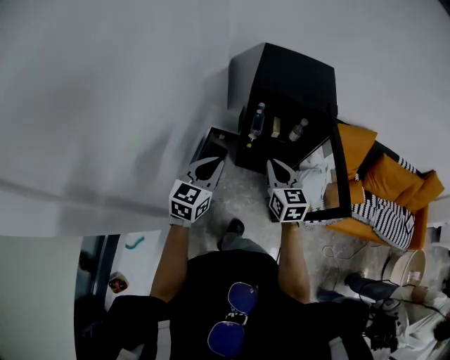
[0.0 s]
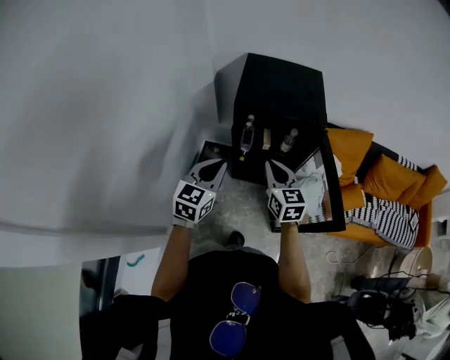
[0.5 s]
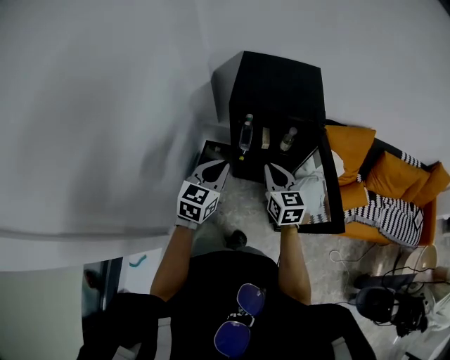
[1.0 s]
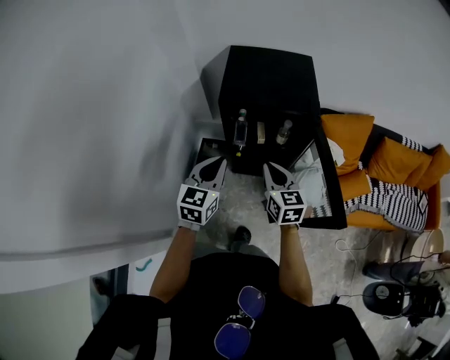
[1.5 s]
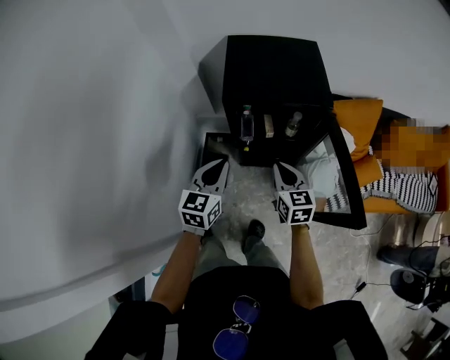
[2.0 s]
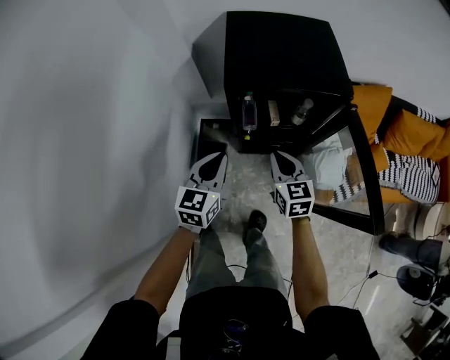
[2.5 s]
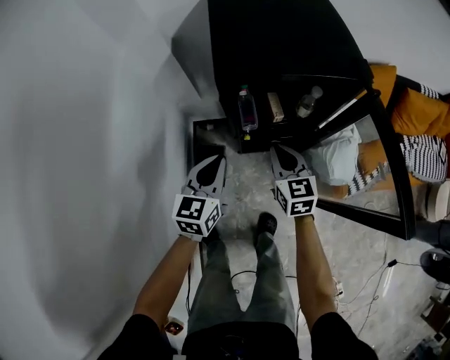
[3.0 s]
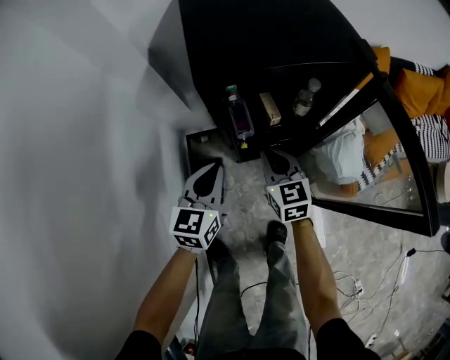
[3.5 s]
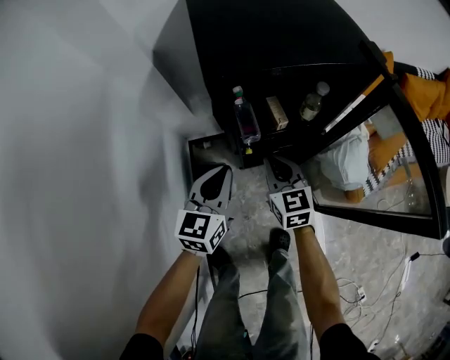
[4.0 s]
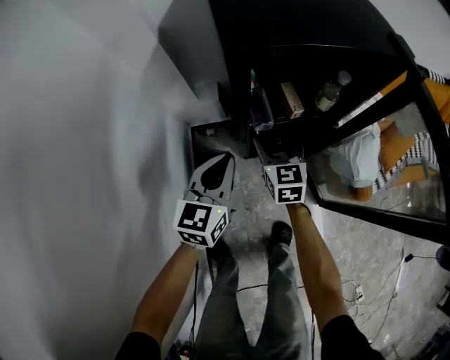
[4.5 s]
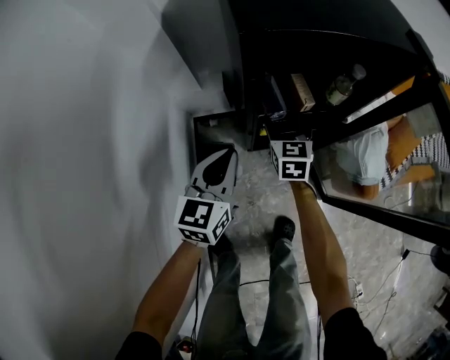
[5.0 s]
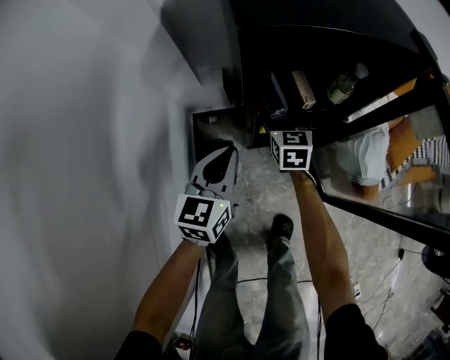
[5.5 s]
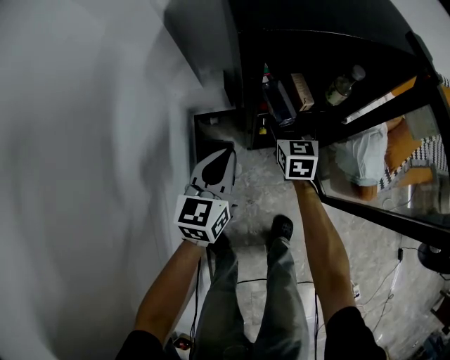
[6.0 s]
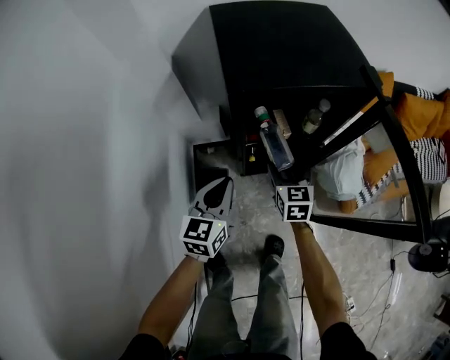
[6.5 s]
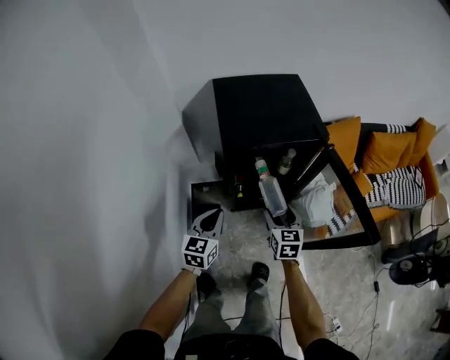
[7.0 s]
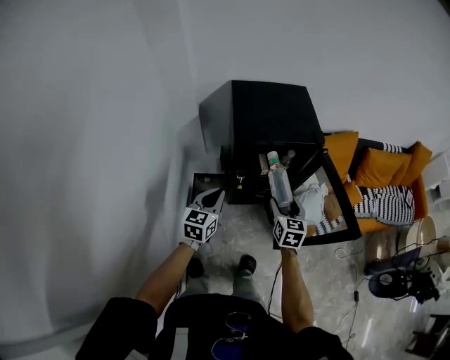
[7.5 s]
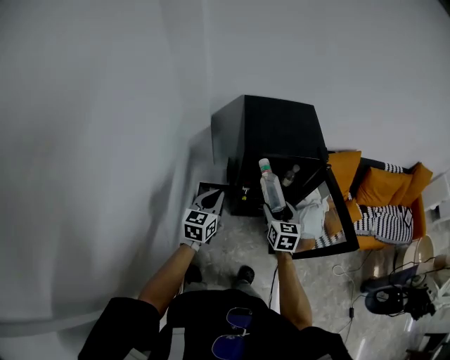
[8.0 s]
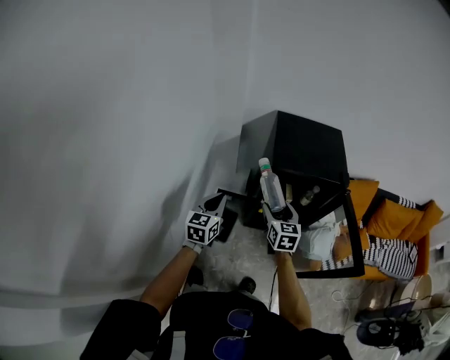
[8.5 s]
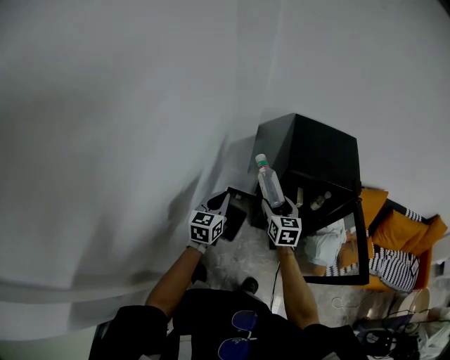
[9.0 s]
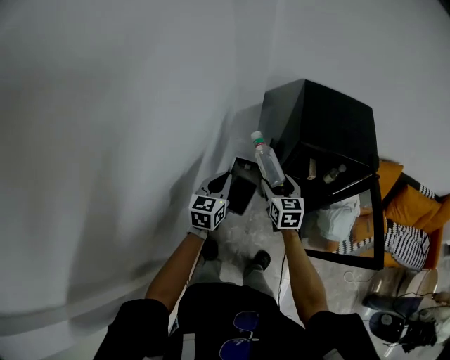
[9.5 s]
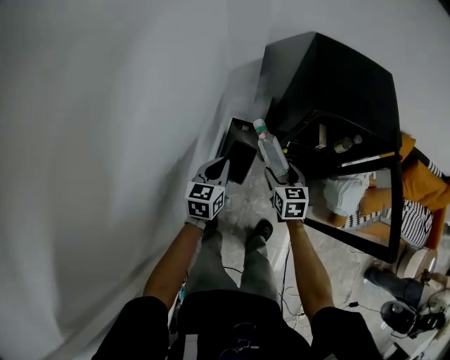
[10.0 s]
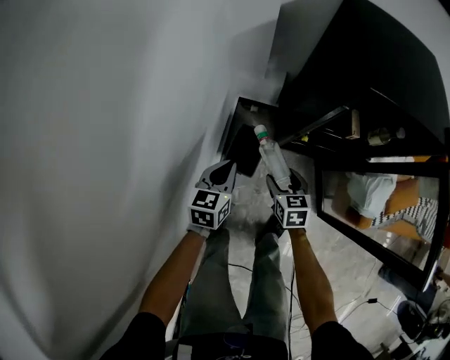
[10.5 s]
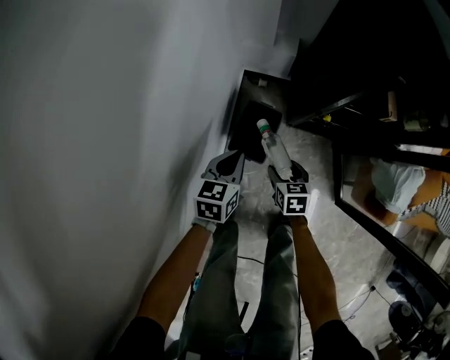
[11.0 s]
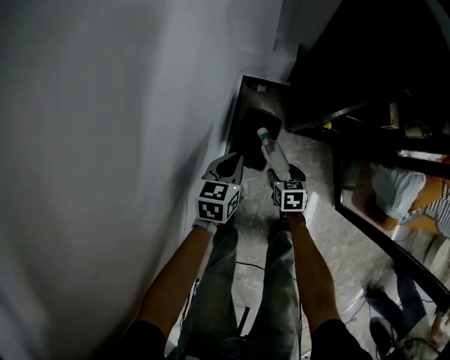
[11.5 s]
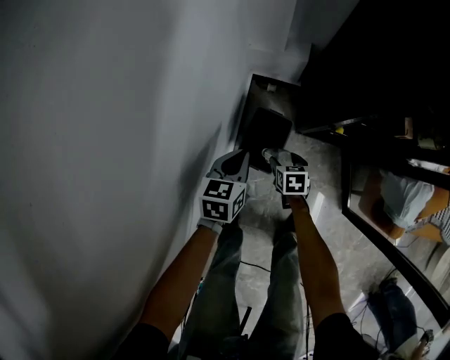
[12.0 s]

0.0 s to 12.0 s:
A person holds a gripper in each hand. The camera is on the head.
0.0 to 2.0 s: The right gripper travels forward, downward and to the right by approximately 15 cm; the left gripper goes approximately 15 cm forward.
2.0 to 4.0 s: The left gripper goes approximately 25 cm downward and forward. The right gripper shifts about 25 cm downward, forward and to the left.
4.0 to 6.0 s: The right gripper goes about 15 cm downward and forward, and opens. Meanwhile the left gripper shifts approximately 5 cm downward.
6.0 to 8.0 s: The left gripper travels upward by approximately 25 cm. Meanwhile the right gripper moves upward and backward, roughly 40 cm.
8.0 to 10.0 s: The right gripper heads to the left and downward, covering about 20 cm, and turns by approximately 20 degrees. Meanwhile the left gripper travels downward and to the left by roughly 20 cm.
10.0 to 12.0 s: The two grippers go approximately 40 cm downward. The right gripper changes its angle by about 30 degrees.

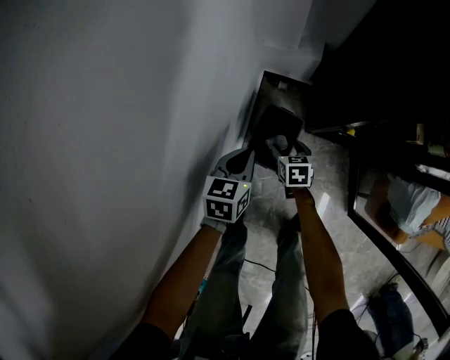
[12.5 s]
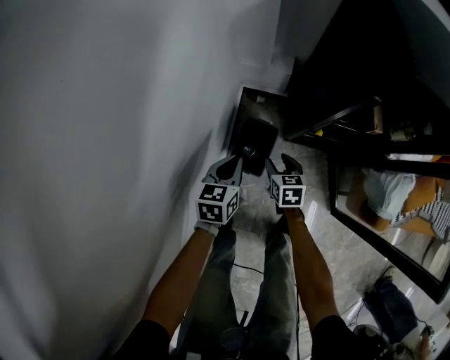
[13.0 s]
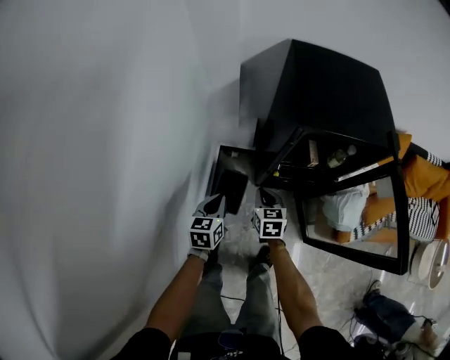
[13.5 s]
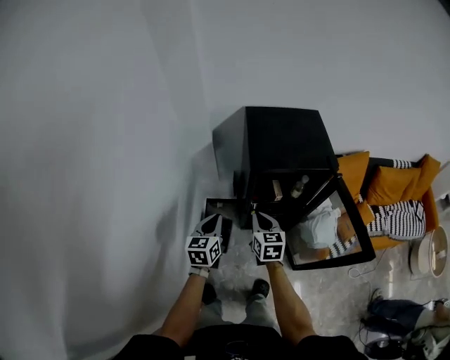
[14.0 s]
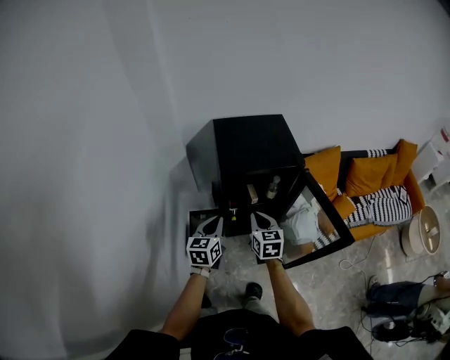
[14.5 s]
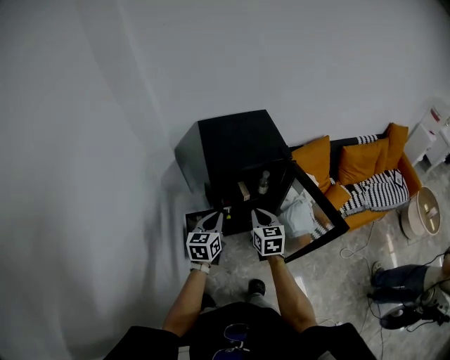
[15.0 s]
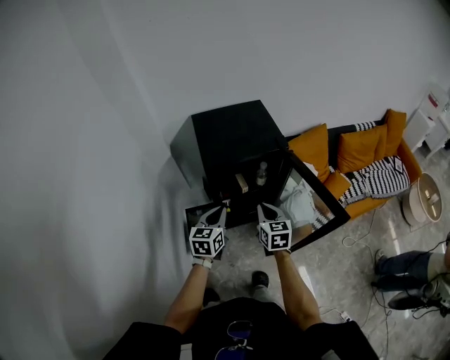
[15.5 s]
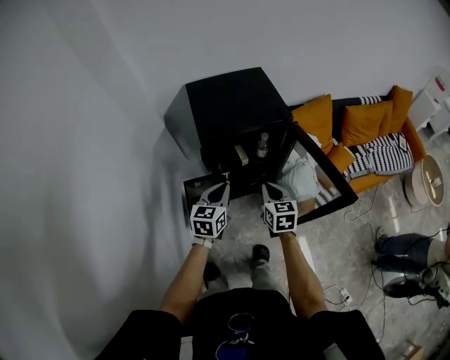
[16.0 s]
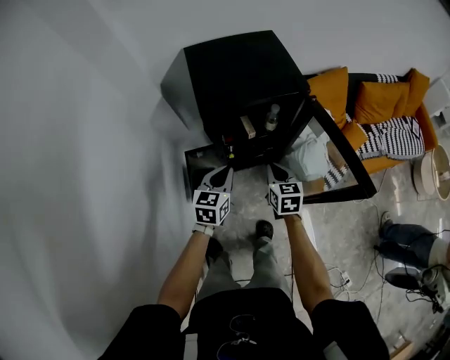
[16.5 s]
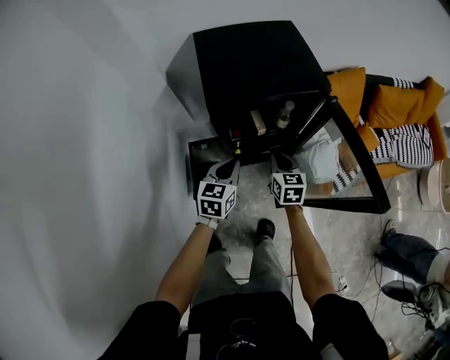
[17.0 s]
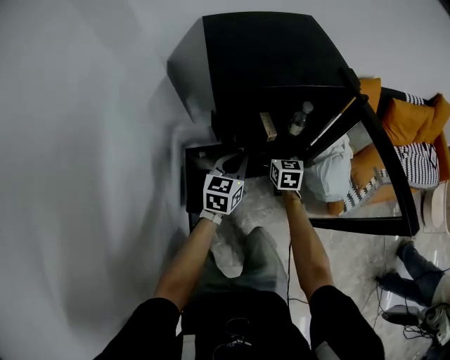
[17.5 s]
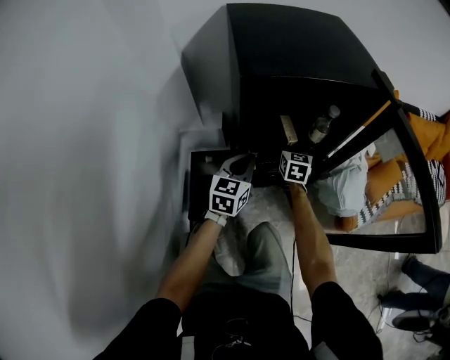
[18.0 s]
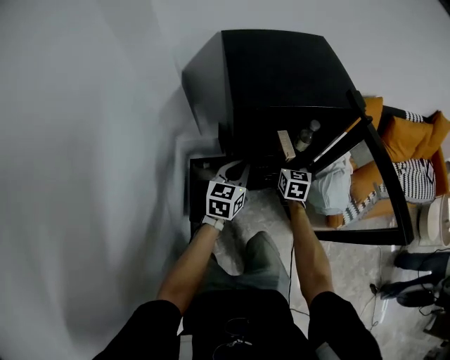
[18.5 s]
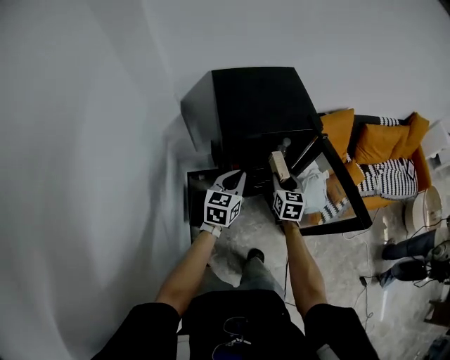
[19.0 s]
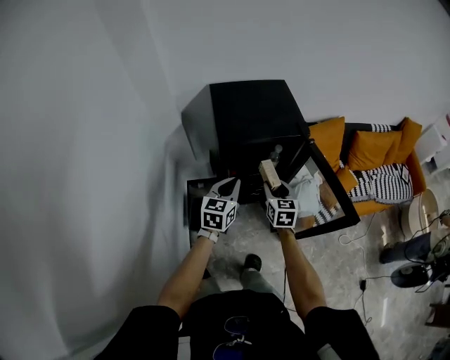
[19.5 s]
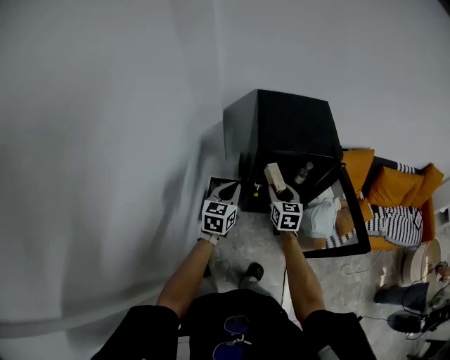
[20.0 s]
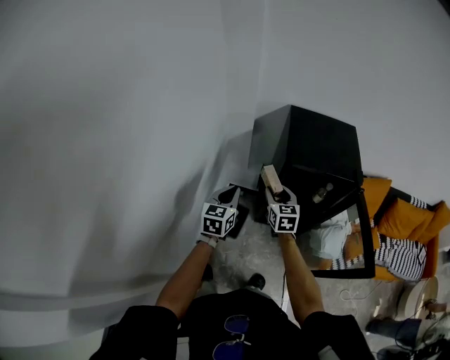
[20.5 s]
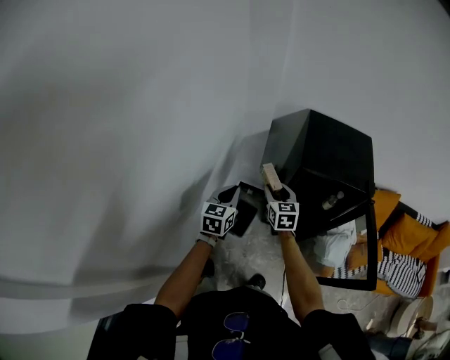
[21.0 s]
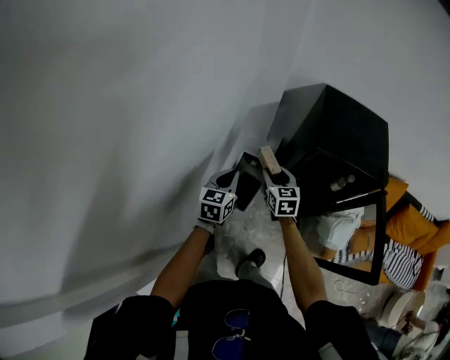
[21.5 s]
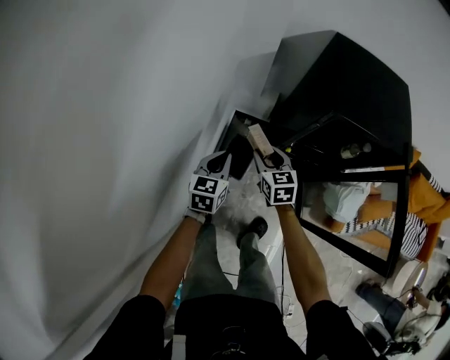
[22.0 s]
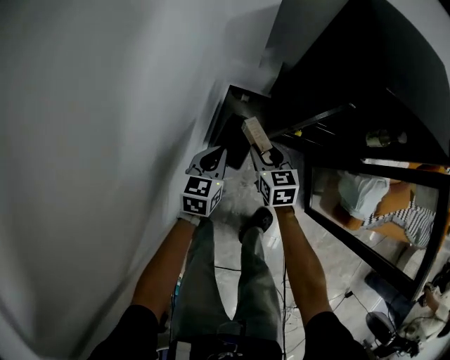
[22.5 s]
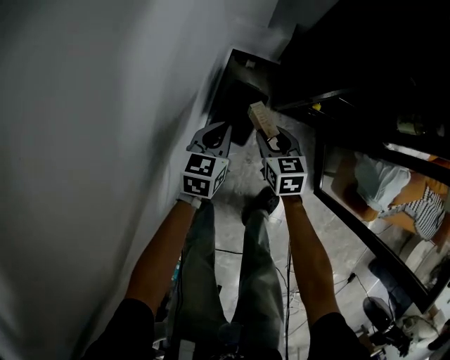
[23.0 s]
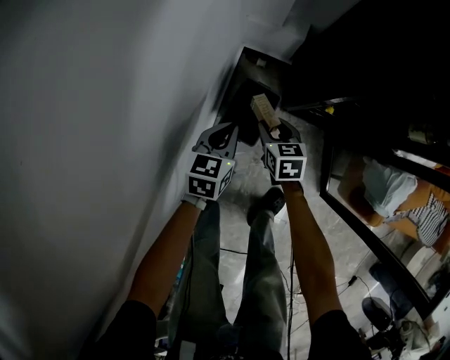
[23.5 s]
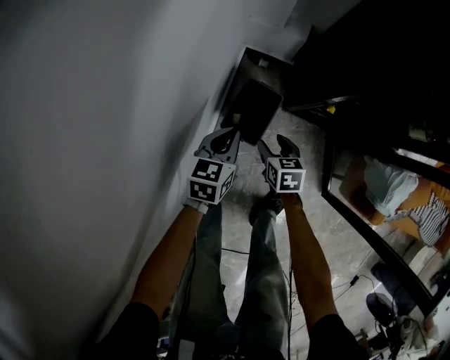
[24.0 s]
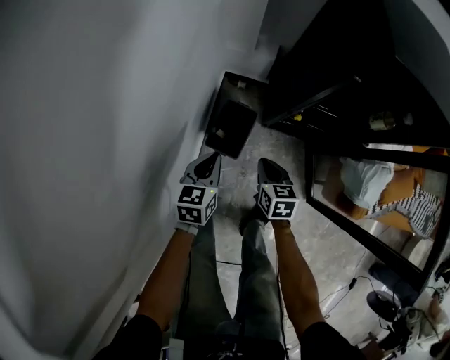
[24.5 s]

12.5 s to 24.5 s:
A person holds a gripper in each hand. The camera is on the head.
12.5 to 14.5 s: Both grippers move upward and to the right, some 60 cm. The left gripper changes its angle by approximately 30 degrees; the right gripper turns by some 40 degrees, and closes.
14.5 to 16.5 s: Both grippers travel together downward and to the right, about 15 cm.
16.5 to 18.5 s: The right gripper is displaced forward and downward by roughly 25 cm, and opens. Meanwhile the left gripper moves downward and forward, approximately 15 cm.
18.5 to 20.5 s: Both grippers move upward, approximately 25 cm. The left gripper swivels approximately 20 degrees. The right gripper changes its angle by approximately 30 degrees.
20.5 to 22.5 s: Both grippers move downward, roughly 35 cm.
22.5 to 24.5 s: The right gripper goes approximately 10 cm backward, goes downward and returns, approximately 20 cm each way, and closes, while the left gripper shifts approximately 5 cm backward, and reaches some 10 cm downward, then returns.

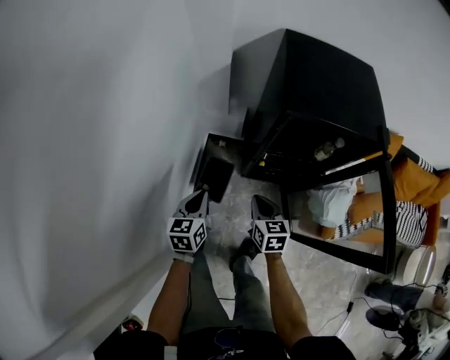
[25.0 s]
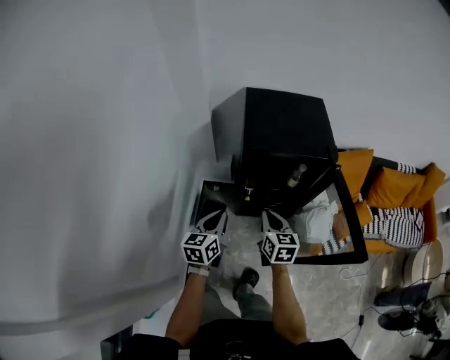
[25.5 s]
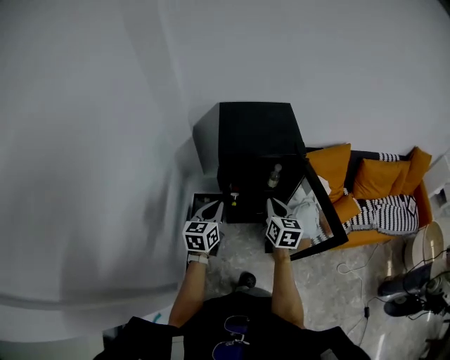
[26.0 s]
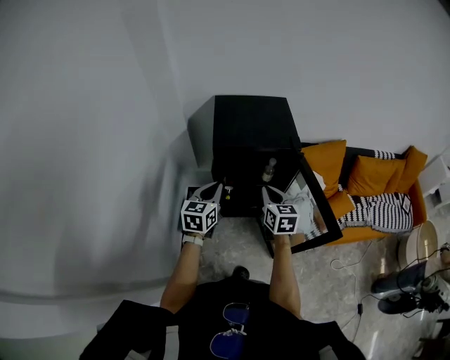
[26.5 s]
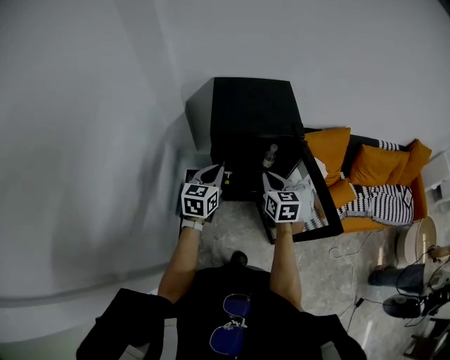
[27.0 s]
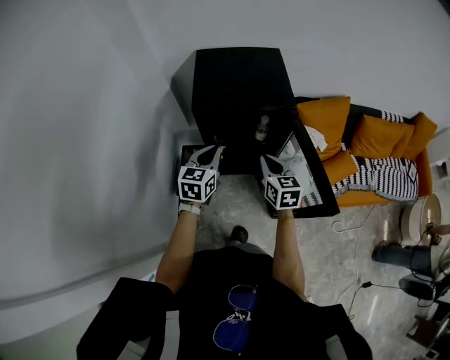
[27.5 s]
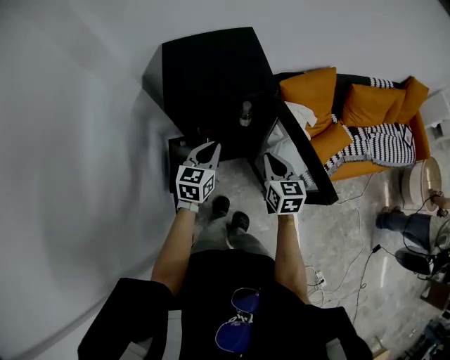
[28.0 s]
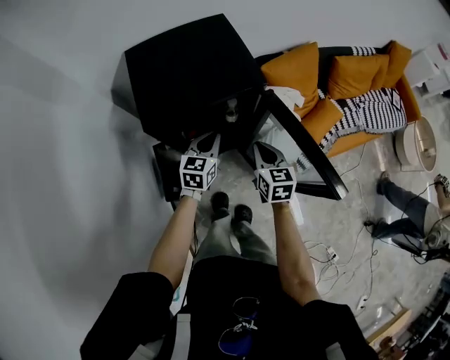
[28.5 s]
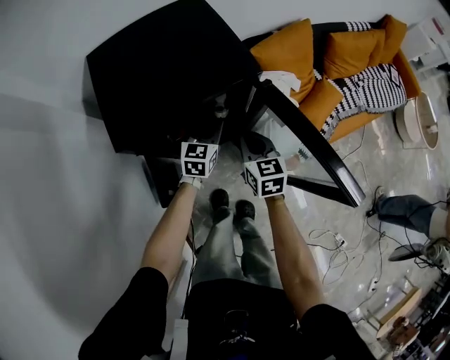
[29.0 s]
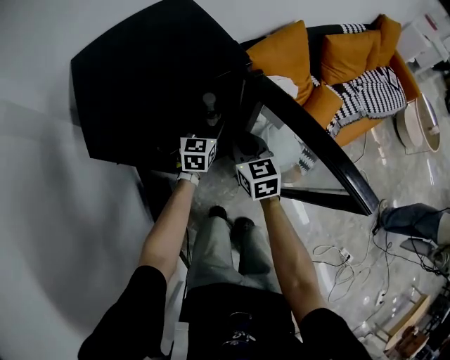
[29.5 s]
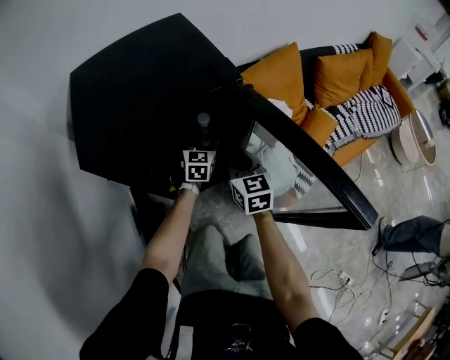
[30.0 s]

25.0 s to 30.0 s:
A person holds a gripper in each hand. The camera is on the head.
25.0 to 27.5 s: The two grippers go roughly 35 cm to the right and upward. The left gripper rotates about 20 degrees.
27.5 to 30.0 s: The right gripper shifts about 25 cm downward and forward, and turns by about 20 degrees, while the left gripper shifts about 50 cm downward, forward and to the right, turns by some 20 degrees, and opens its fingers.
